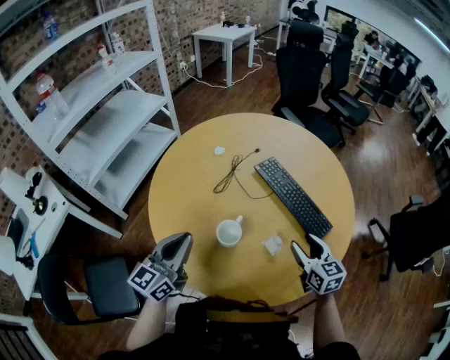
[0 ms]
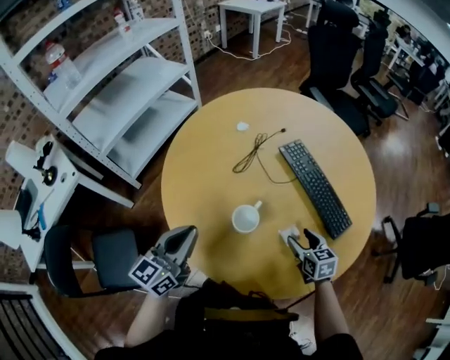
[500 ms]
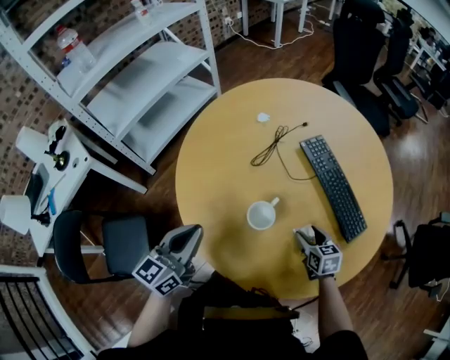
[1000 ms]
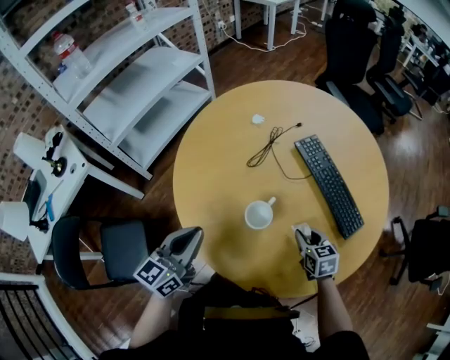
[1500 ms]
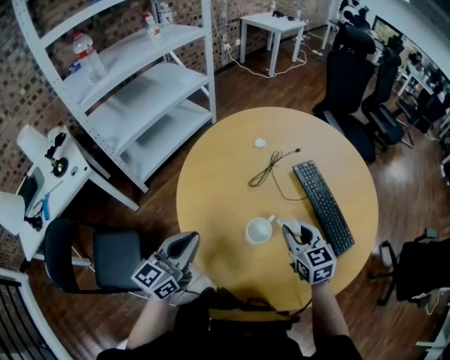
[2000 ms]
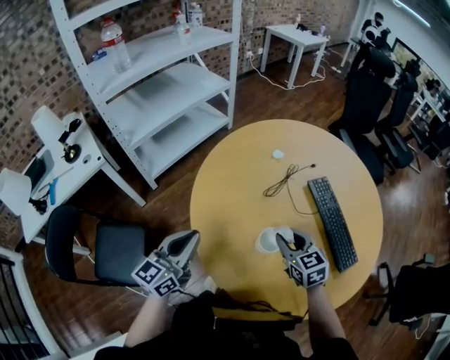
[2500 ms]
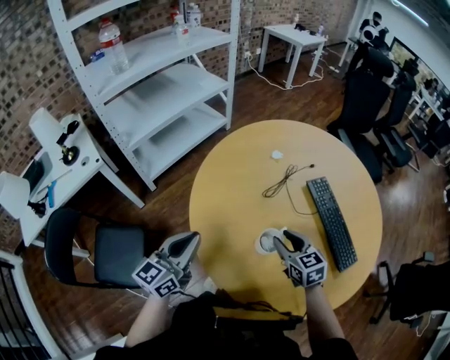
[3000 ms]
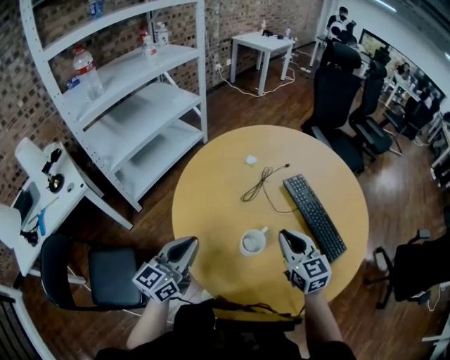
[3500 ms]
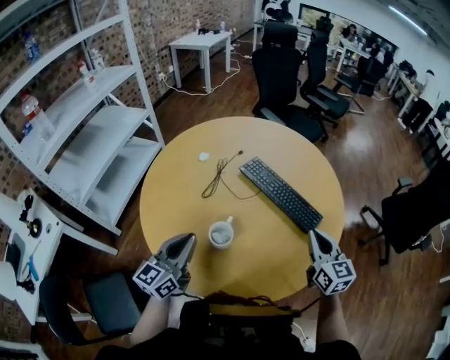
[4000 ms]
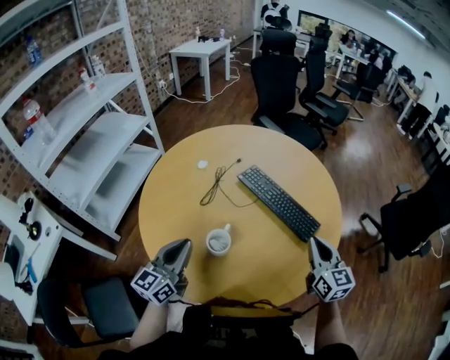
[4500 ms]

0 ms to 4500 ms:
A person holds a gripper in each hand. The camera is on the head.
0 ms to 2000 ms: The right gripper moves to the left and forward, roughly 15 cm, reaches approximately 15 cm downward, then returns, swivels some 20 degrees, and closes up. The left gripper travels to the left by approximately 5 cm.
2000 ms to 4500 ms: The right gripper changes place by approximately 25 cm, and swivels some 40 degrees; the left gripper ends up some 10 cm from where it was.

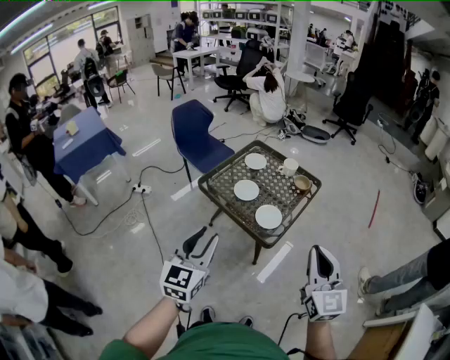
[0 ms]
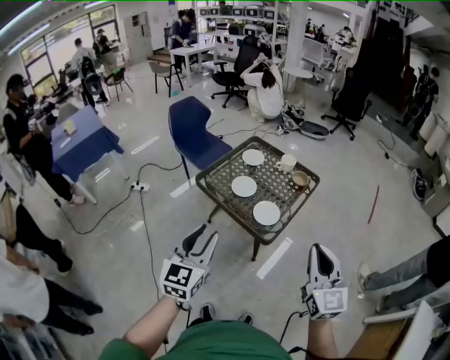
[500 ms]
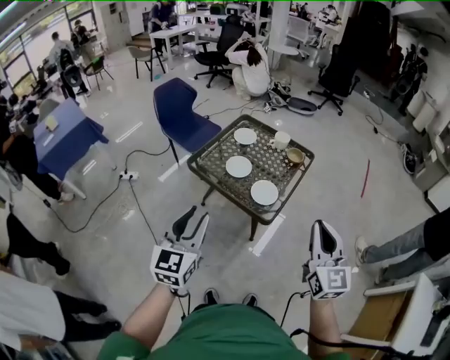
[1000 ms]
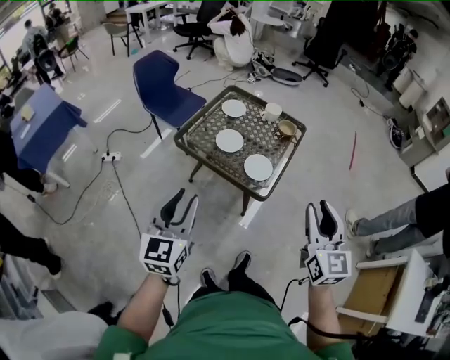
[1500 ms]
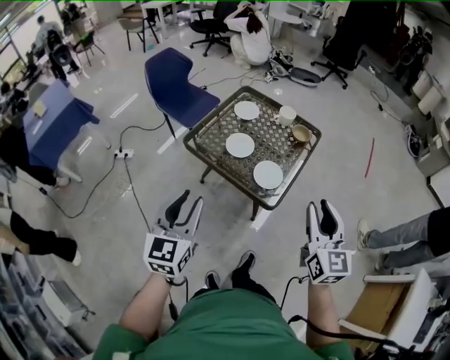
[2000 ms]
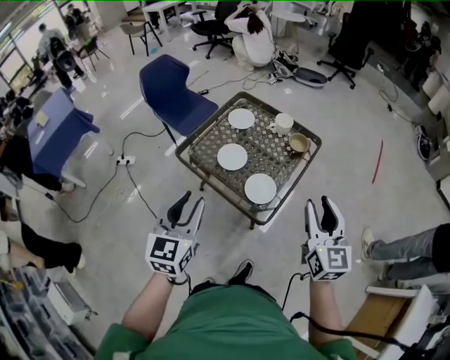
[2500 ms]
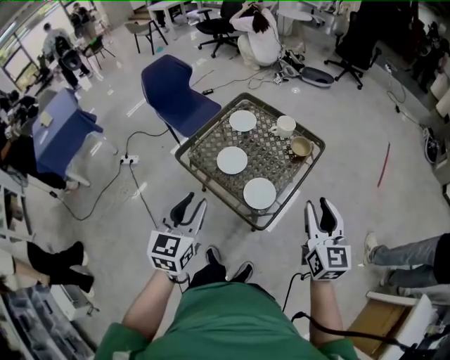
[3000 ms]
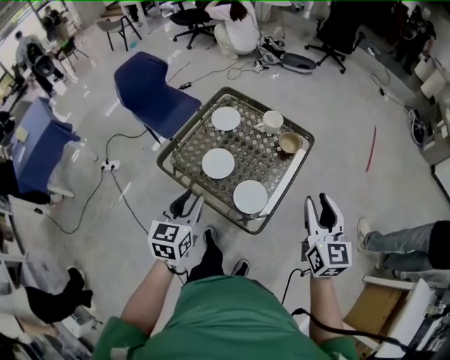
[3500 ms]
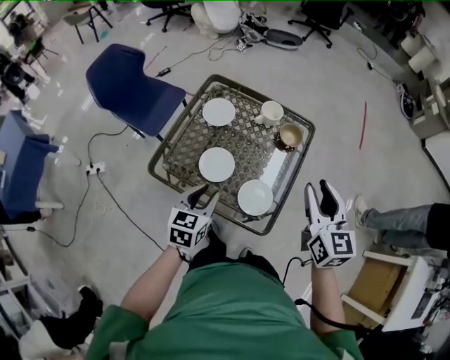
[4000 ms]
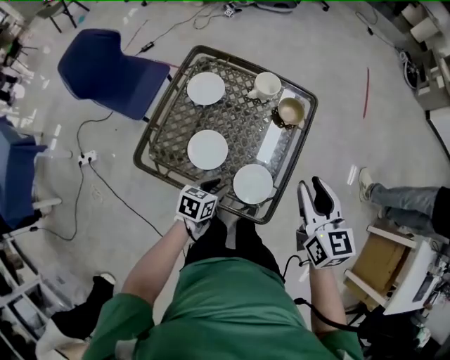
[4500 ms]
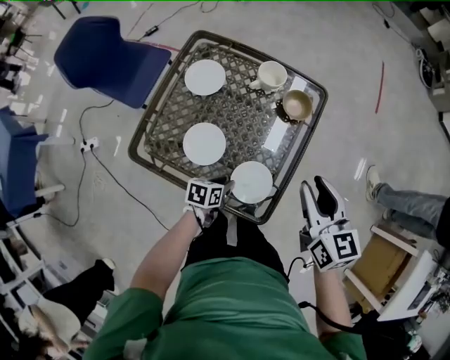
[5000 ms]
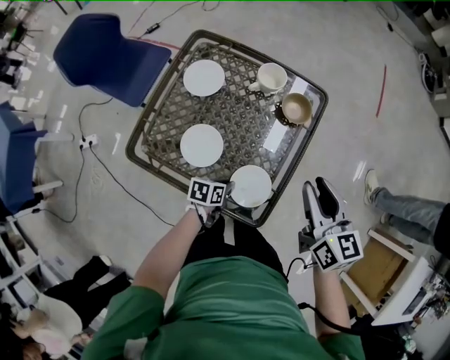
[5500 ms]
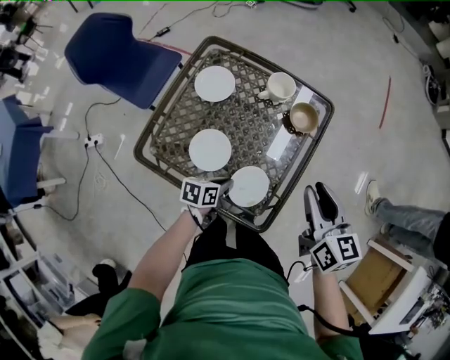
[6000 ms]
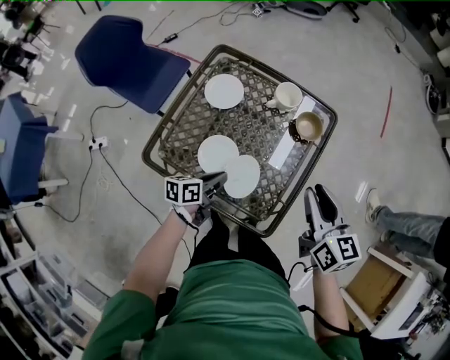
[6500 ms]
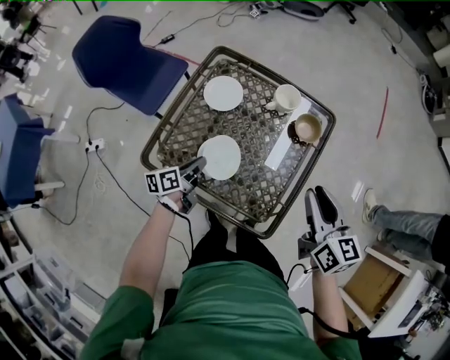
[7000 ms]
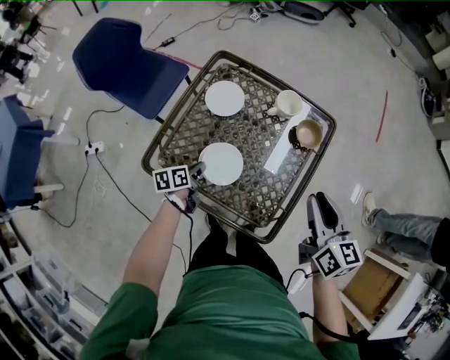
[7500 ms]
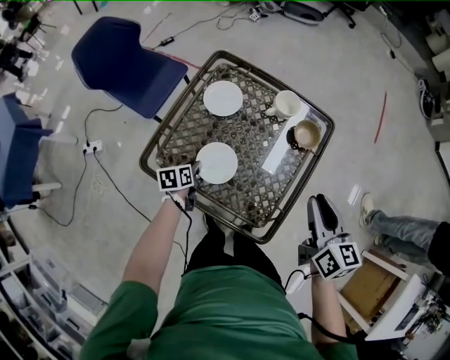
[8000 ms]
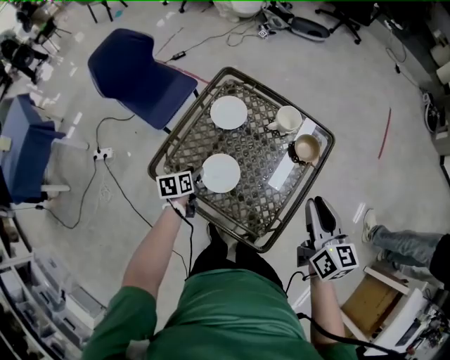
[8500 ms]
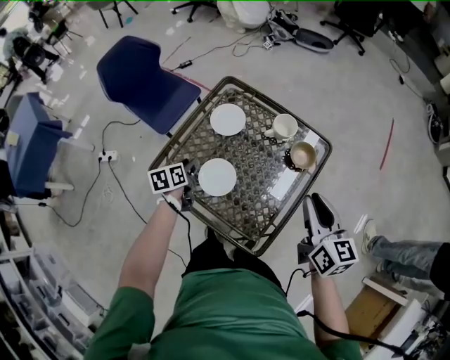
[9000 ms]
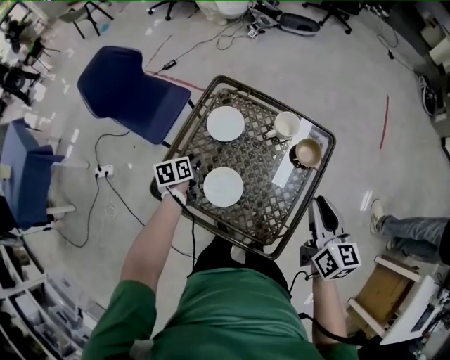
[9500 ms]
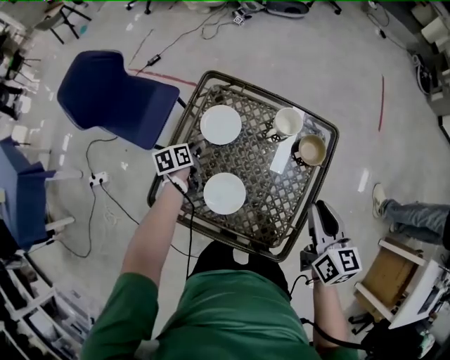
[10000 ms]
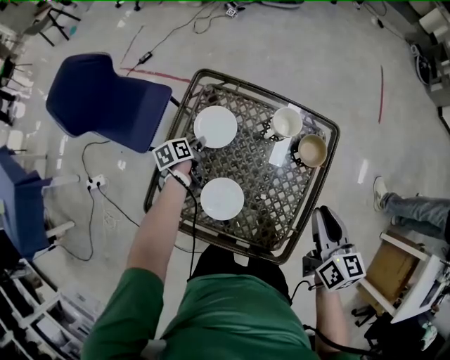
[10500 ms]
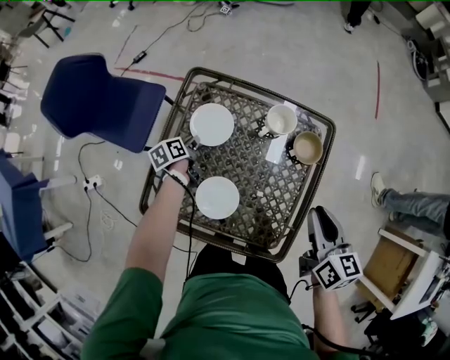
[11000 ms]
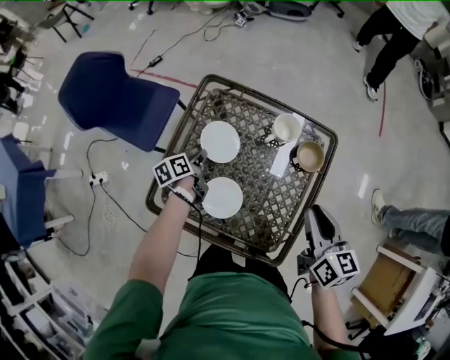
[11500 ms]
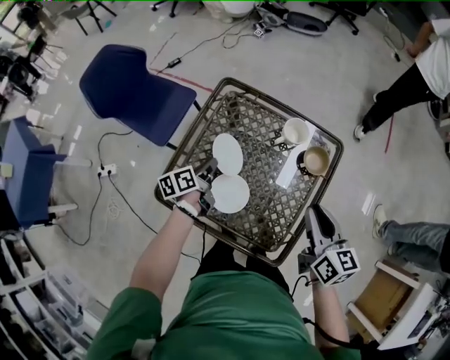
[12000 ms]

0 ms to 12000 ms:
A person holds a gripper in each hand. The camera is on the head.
0 ms to 2000 ms: The right gripper shifts about 10 cm forward and downward, and opens its fingers. The left gripper shifts roughly 10 cm forward, to the left and downward.
2000 ms to 4000 ms: The right gripper travels forward by approximately 30 cm. The left gripper moves forward and downward, some 35 cm, and turns by about 30 degrees.
4000 ms to 6000 ms: The left gripper travels downward by about 20 cm, swivels about 40 degrees, and closes its fingers; the right gripper travels downward and forward by approximately 15 cm, and rotates about 20 degrees.
6000 ms to 8000 ms: The left gripper moves to the left, some 20 cm, and changes its angle by approximately 30 degrees.
8000 ms to 10000 ms: The right gripper is displaced forward by roughly 5 cm; the left gripper travels forward by some 20 cm, and opens.
10000 ms to 12000 ms: The left gripper travels upward and backward by approximately 10 cm, swivels approximately 20 degrees, and closes its fingers.

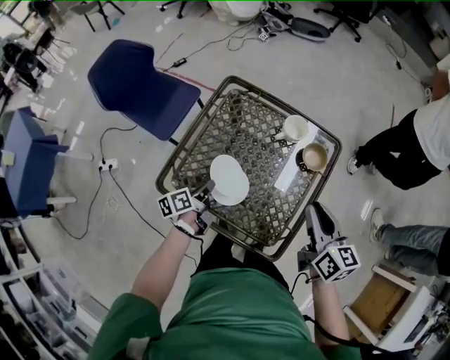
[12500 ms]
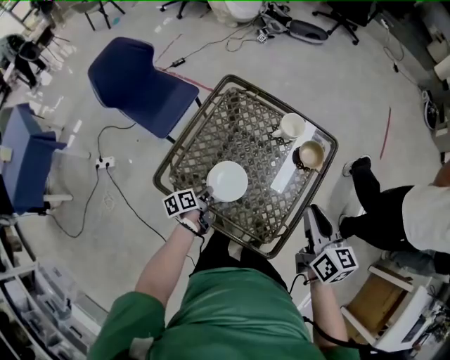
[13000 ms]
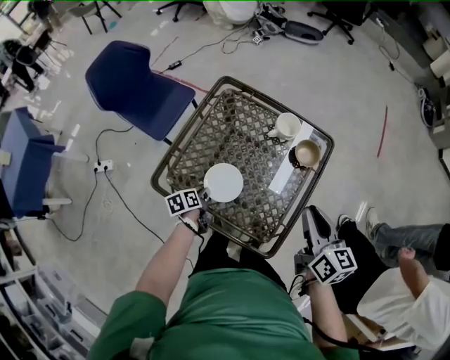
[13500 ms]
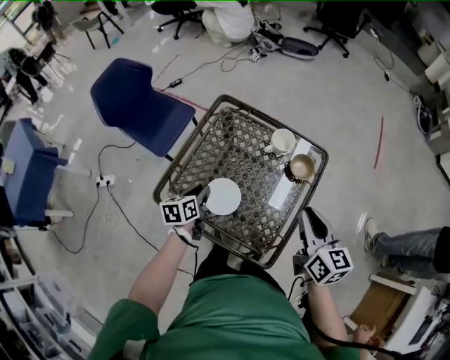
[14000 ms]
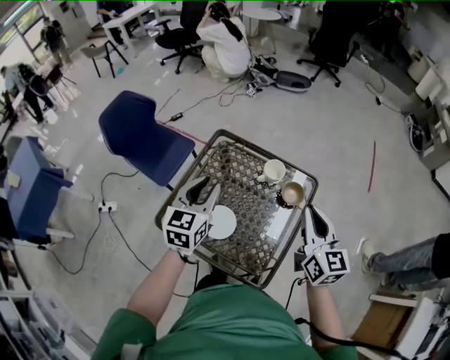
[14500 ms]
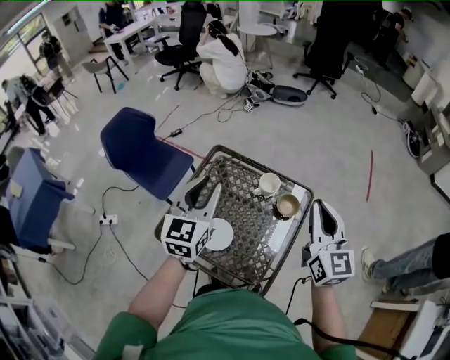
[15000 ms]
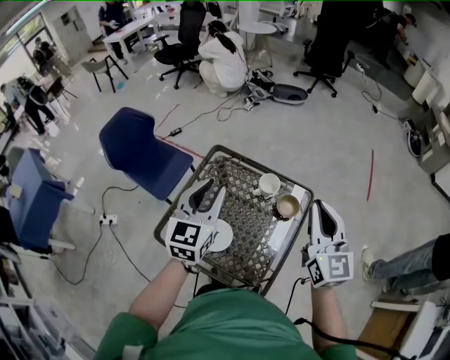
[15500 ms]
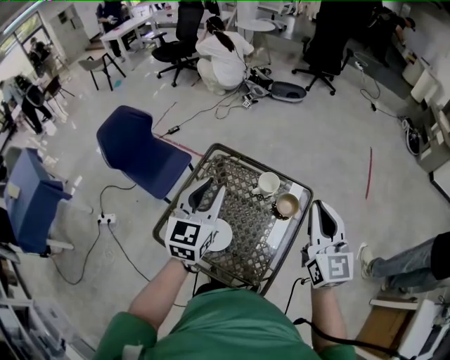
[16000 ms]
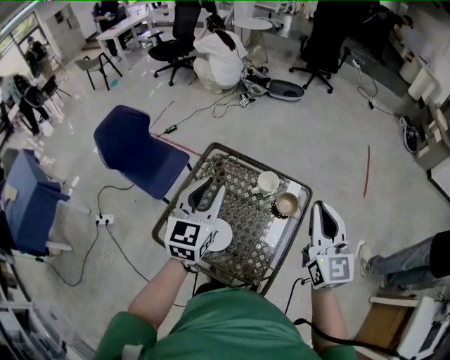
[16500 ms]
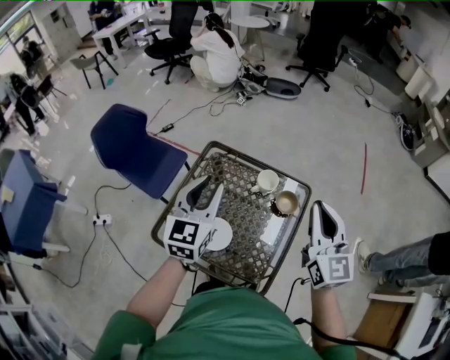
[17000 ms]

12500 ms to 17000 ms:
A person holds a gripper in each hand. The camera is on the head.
12500 ms to 14500 ms: The left gripper moves upward, about 30 cm, rolls clockwise, seen from behind, by some 60 degrees, and opens its fingers. Meanwhile the right gripper heads upward, covering about 10 cm, and rotates about 20 degrees.
14500 ms to 17000 ms: The grippers both shift upward by approximately 5 cm.

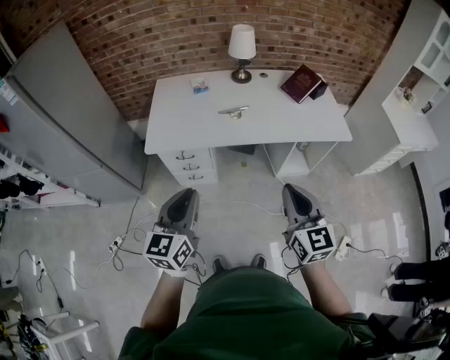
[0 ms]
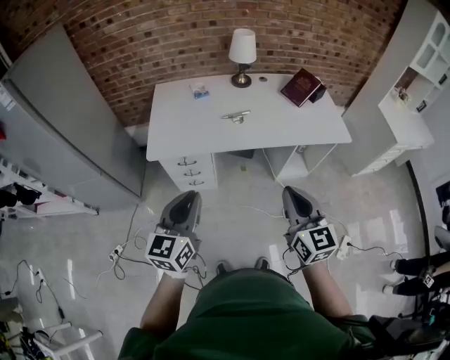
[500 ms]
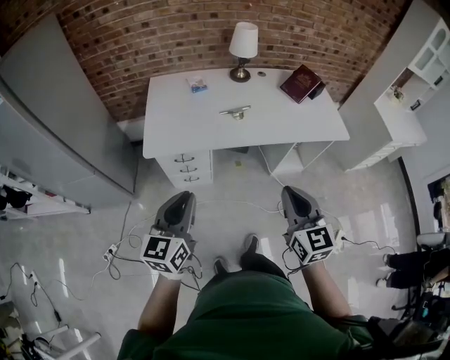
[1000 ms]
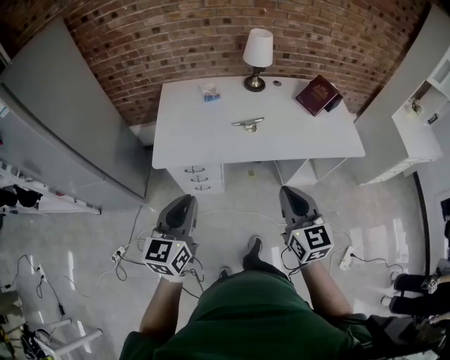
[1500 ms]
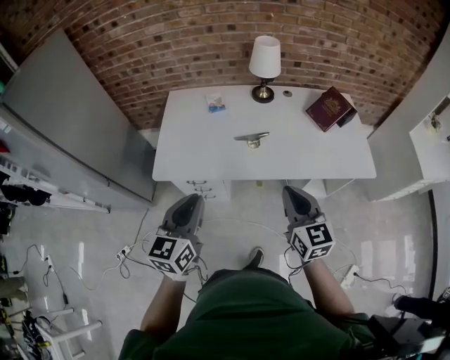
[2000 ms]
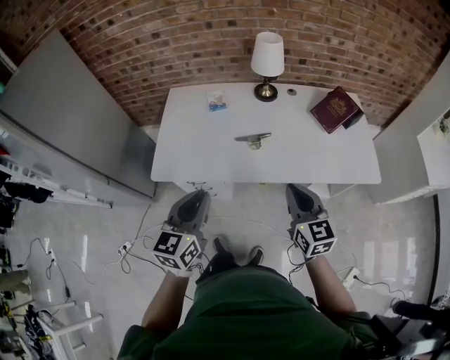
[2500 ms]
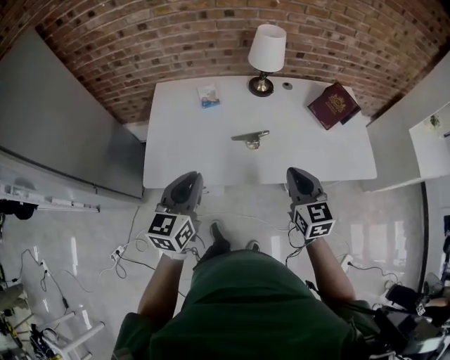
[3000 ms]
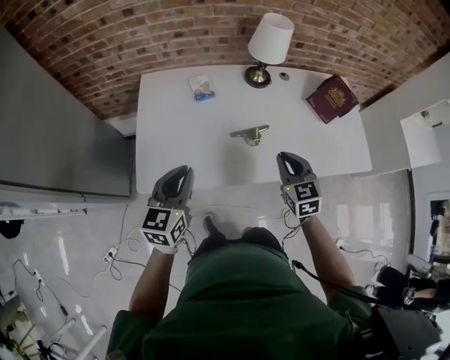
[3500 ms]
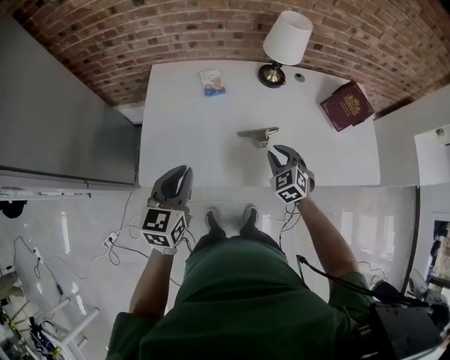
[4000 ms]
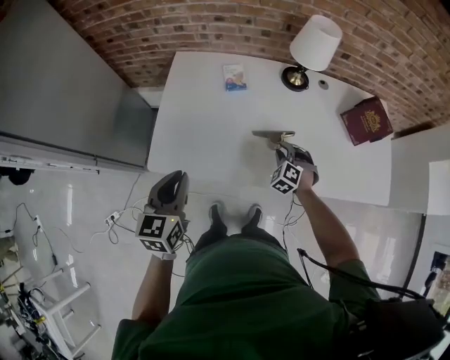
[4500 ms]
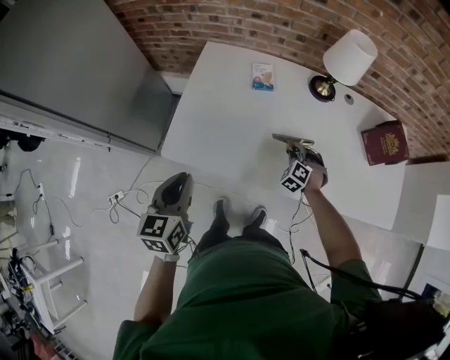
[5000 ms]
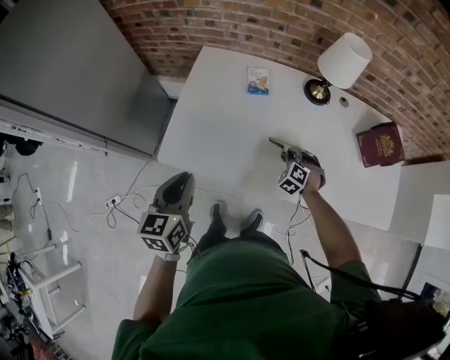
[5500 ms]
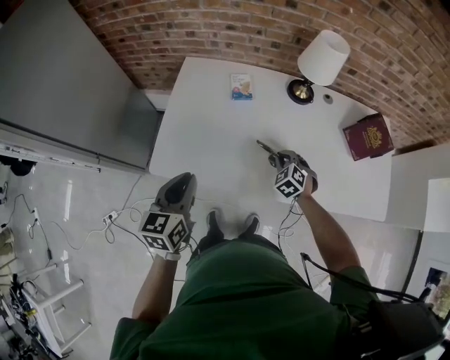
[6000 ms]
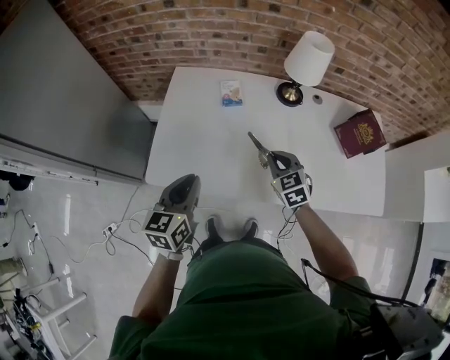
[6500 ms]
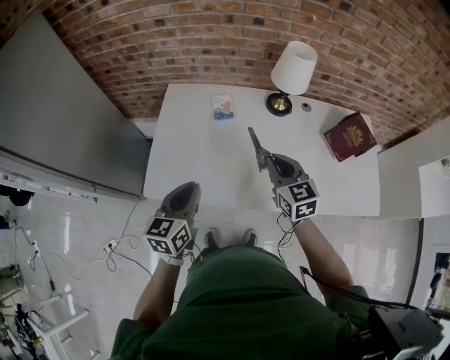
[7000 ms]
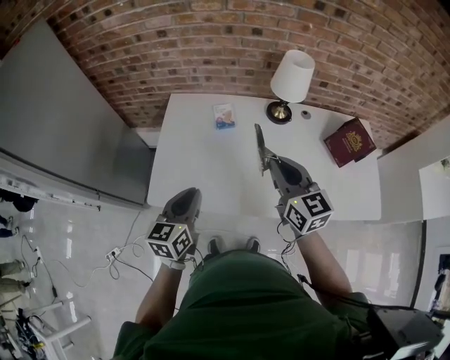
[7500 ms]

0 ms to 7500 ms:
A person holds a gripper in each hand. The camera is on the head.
0 ms to 2000 ms: The two grippers go approximately 20 cm forward.
2000 ms to 4000 ms: Both grippers travel together forward and downward, about 30 cm. The right gripper tilts its fingers approximately 30 degrees downward.
4000 ms to 5500 ms: The left gripper moves to the left, approximately 5 cm, and rotates some 20 degrees, while the right gripper heads downward and forward, covering approximately 15 cm, and rotates roughly 30 degrees.
5500 ms to 7500 ms: The right gripper travels upward by about 35 cm, and tilts its fingers approximately 50 degrees upward. Meanwhile the left gripper goes approximately 5 cm to the right.
